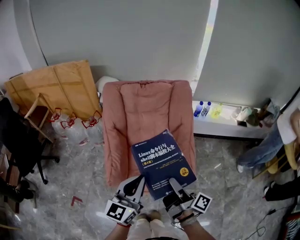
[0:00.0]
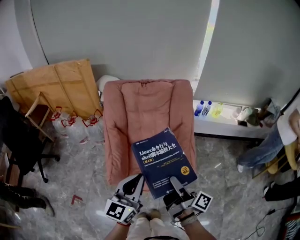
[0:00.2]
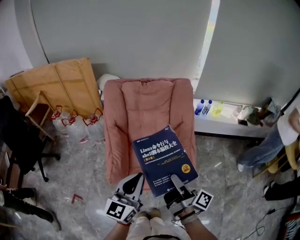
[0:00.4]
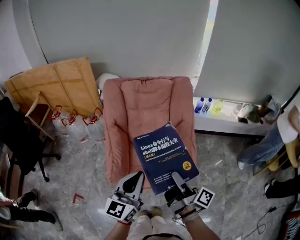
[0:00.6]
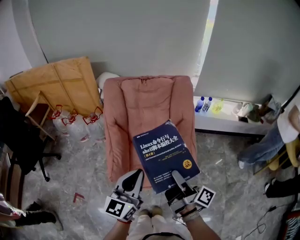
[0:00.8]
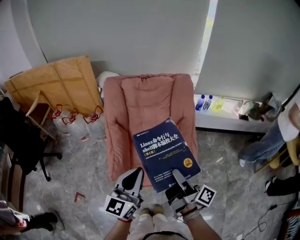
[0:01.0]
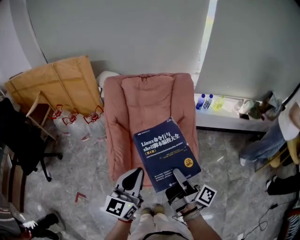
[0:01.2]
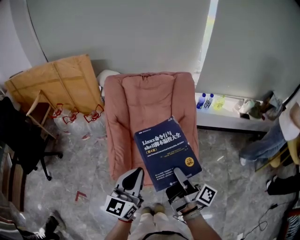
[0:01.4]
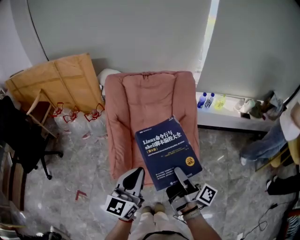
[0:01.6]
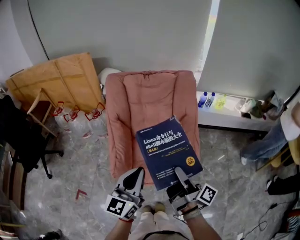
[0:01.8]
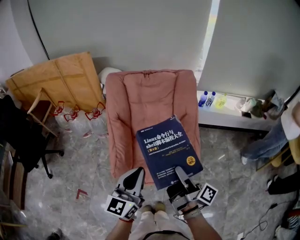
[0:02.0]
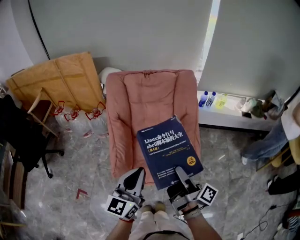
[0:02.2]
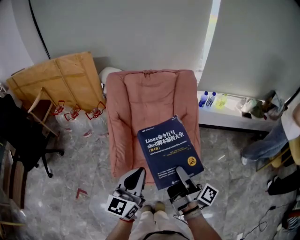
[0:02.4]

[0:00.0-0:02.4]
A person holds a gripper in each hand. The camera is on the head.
0:00.0 to 0:02.4: The grippers move only a little.

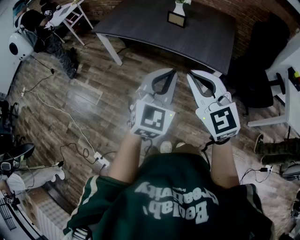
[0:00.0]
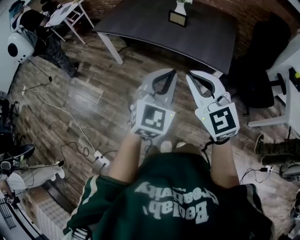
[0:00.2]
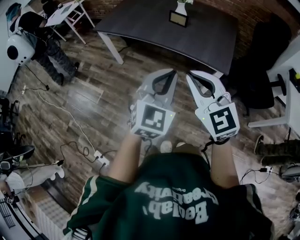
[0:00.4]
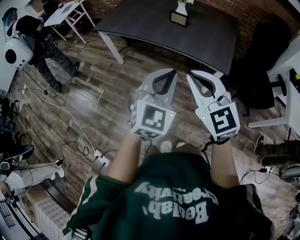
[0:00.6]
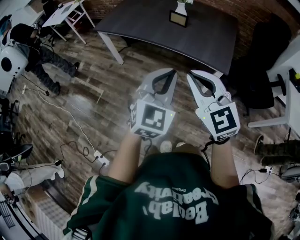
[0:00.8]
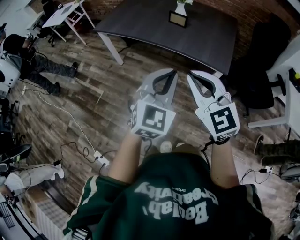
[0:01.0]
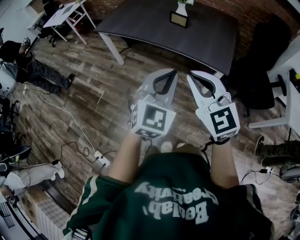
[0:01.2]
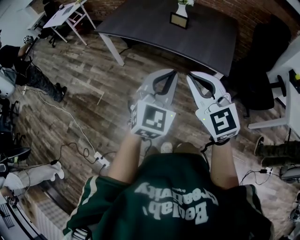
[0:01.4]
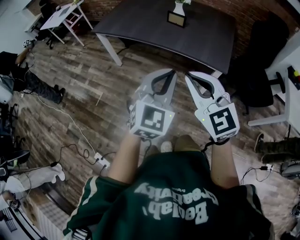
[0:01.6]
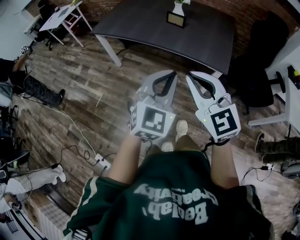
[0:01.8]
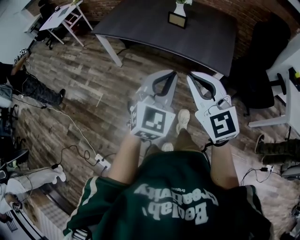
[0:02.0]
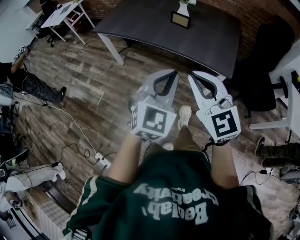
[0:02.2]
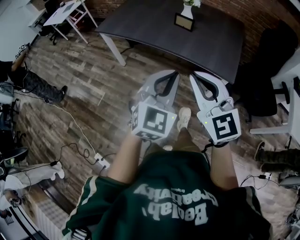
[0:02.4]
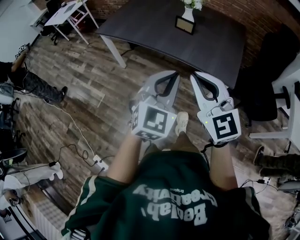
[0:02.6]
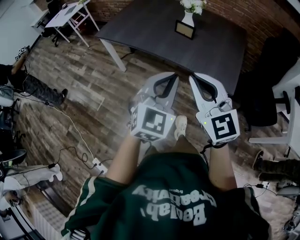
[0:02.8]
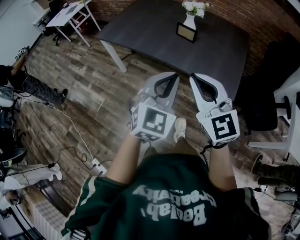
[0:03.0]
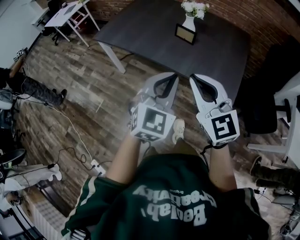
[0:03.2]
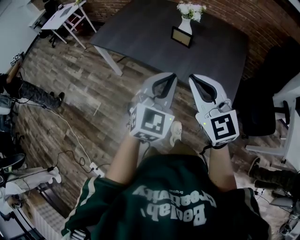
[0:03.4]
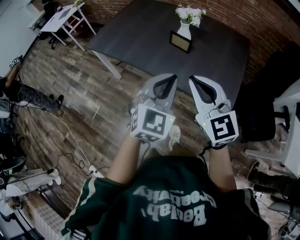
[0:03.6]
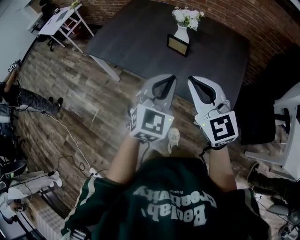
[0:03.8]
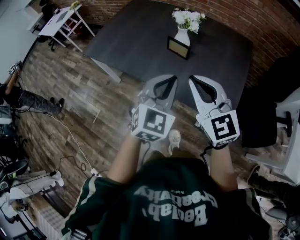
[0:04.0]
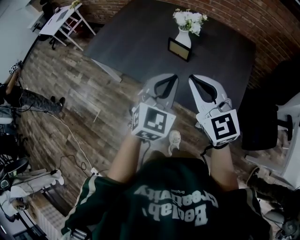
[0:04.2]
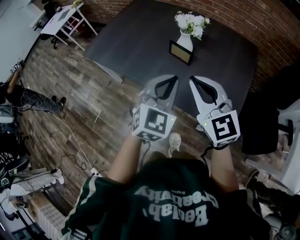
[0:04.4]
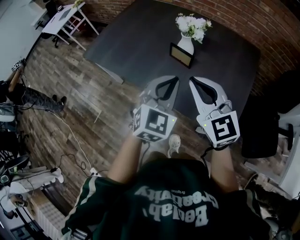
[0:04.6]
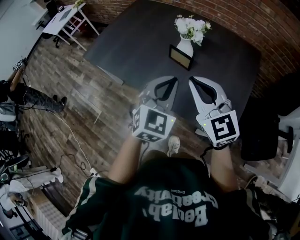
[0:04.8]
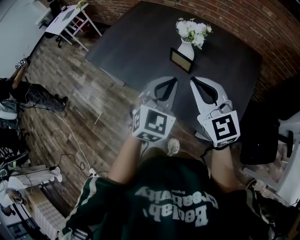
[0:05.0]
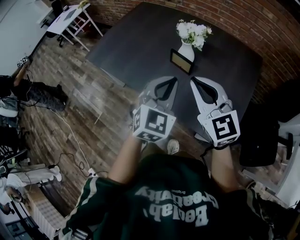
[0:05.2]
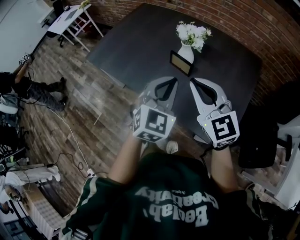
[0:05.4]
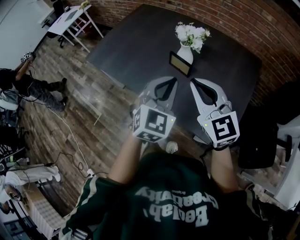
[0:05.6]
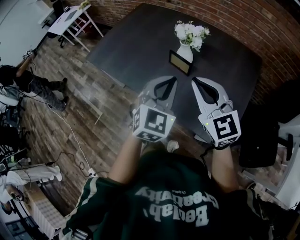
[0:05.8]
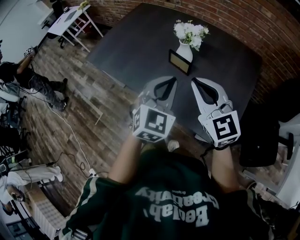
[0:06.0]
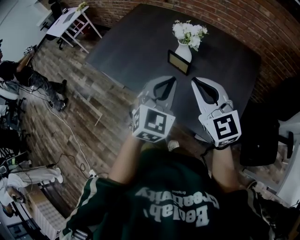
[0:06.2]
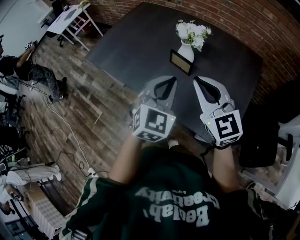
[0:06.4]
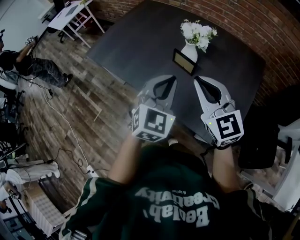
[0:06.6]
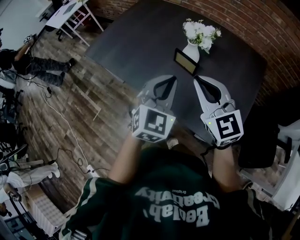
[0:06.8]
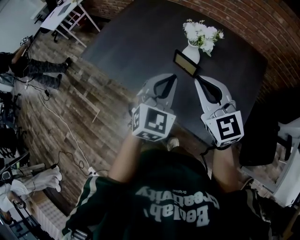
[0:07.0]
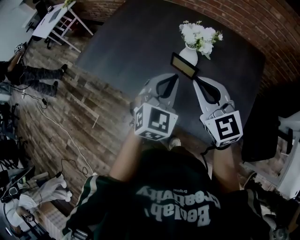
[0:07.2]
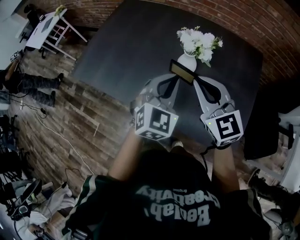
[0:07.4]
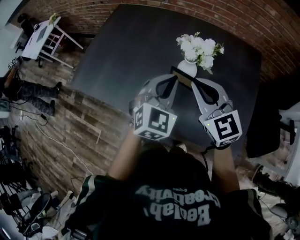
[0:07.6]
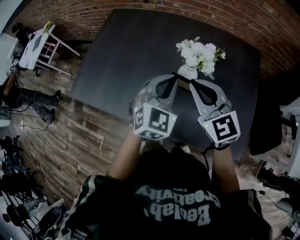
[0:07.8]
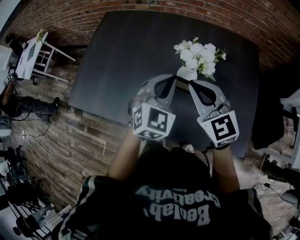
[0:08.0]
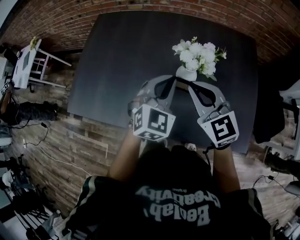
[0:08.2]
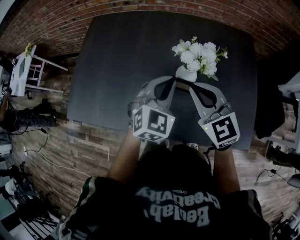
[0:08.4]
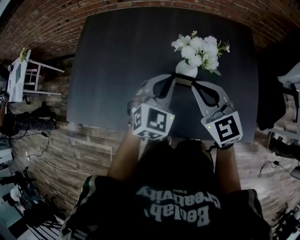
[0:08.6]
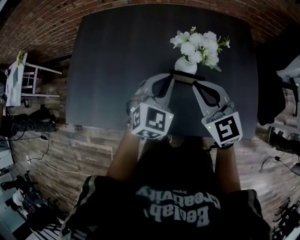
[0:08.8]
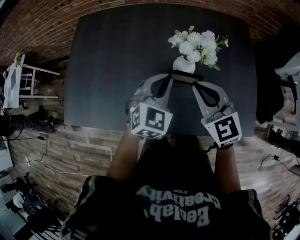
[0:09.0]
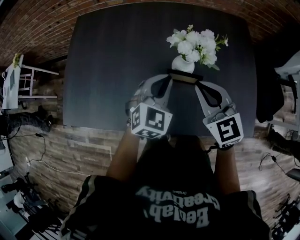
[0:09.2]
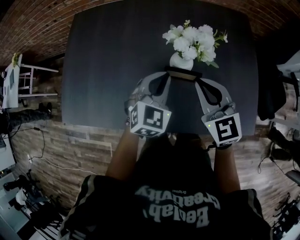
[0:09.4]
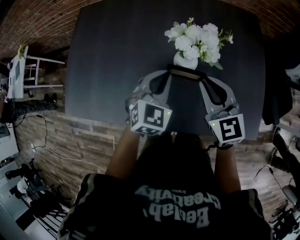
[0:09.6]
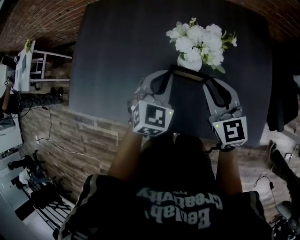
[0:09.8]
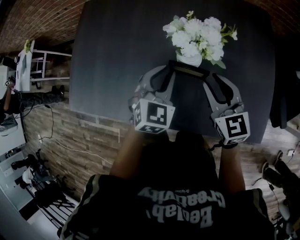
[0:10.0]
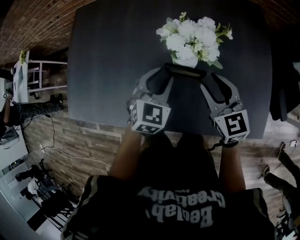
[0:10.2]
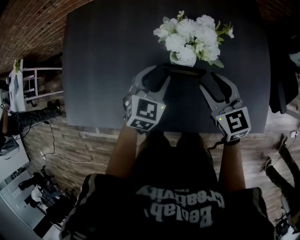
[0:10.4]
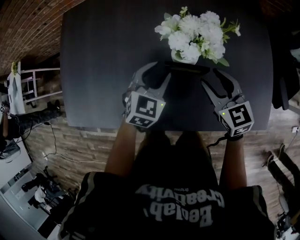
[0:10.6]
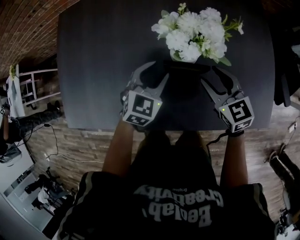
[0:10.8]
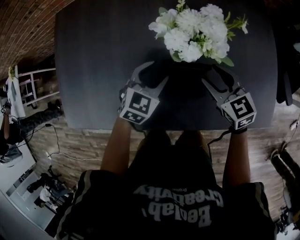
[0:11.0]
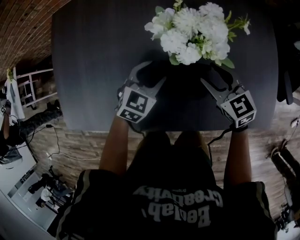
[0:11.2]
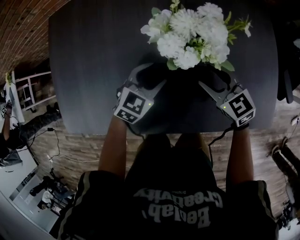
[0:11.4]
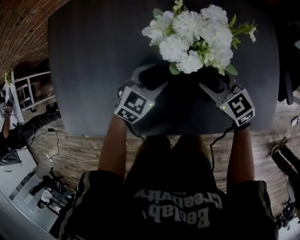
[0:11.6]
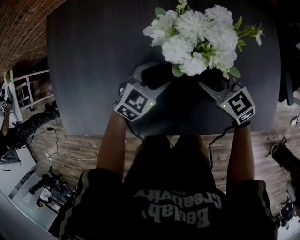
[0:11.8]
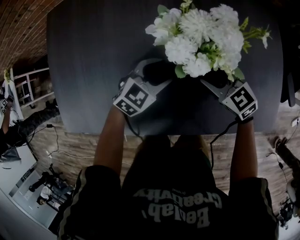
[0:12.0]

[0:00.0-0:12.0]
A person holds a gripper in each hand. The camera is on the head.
0:00.0 to 0:01.6: The grippers stay close to where they were, moving slightly.
0:01.6 to 0:03.0: Both grippers travel together forward, some 15 cm.
0:03.0 to 0:04.4: The two grippers go some 25 cm forward.
0:04.4 to 0:06.0: The left gripper moves some 5 cm. Meanwhile the right gripper moves approximately 5 cm.
0:06.0 to 0:07.6: The two grippers go some 20 cm forward.
0:07.6 to 0:09.0: The left gripper travels forward and downward by about 10 cm. The right gripper heads downward, covering some 5 cm.
0:09.0 to 0:10.4: The right gripper goes some 15 cm downward and to the right, and opens. Meanwhile the left gripper moves downward, about 10 cm, and opens its fingers.
0:10.4 to 0:12.0: The two grippers go approximately 10 cm downward. The left gripper changes its angle by some 30 degrees. Meanwhile the right gripper turns by about 20 degrees.

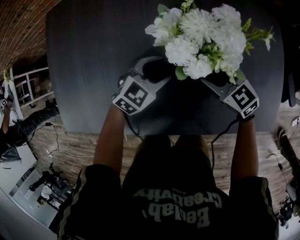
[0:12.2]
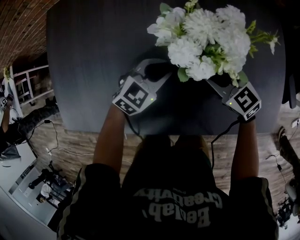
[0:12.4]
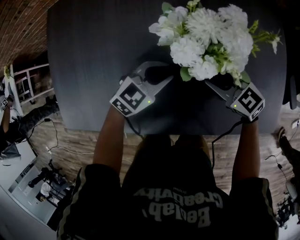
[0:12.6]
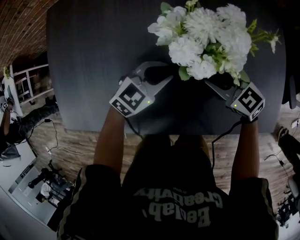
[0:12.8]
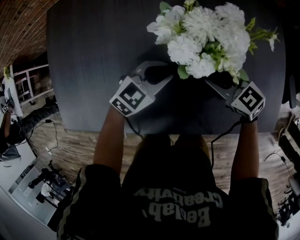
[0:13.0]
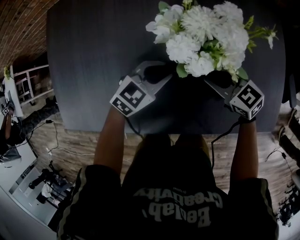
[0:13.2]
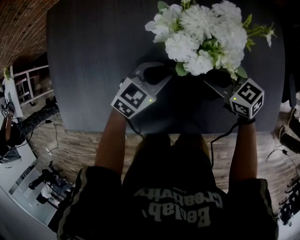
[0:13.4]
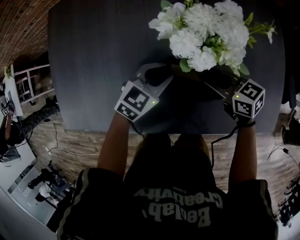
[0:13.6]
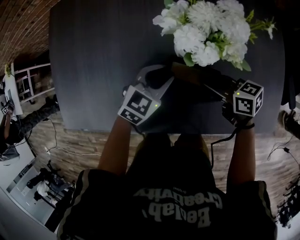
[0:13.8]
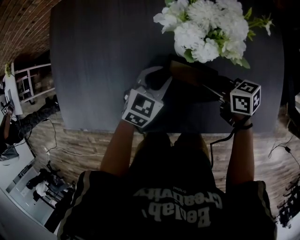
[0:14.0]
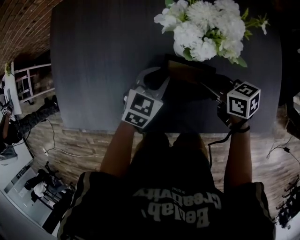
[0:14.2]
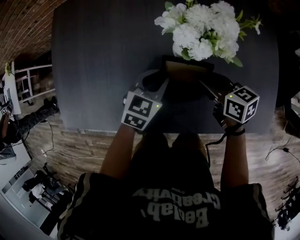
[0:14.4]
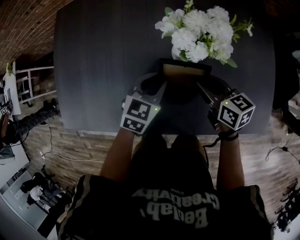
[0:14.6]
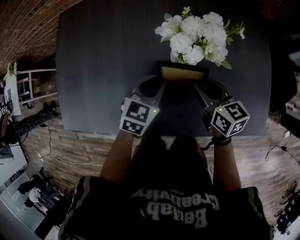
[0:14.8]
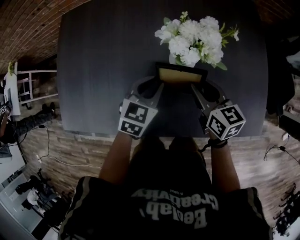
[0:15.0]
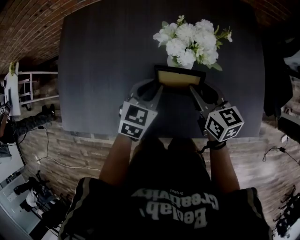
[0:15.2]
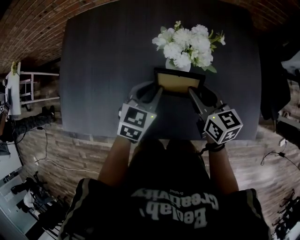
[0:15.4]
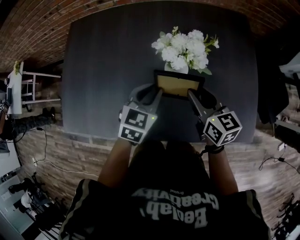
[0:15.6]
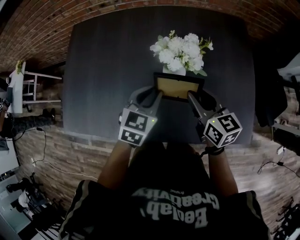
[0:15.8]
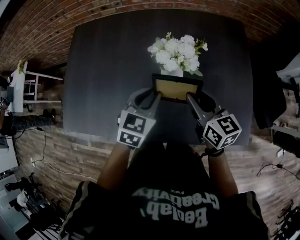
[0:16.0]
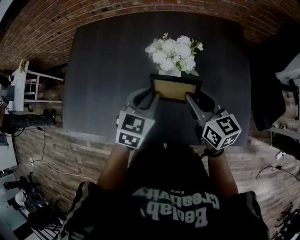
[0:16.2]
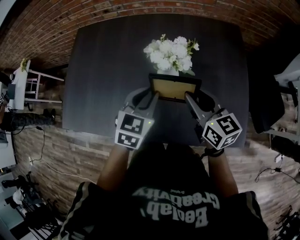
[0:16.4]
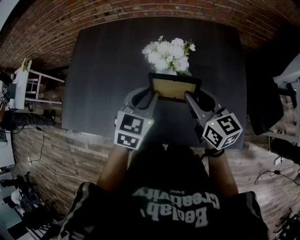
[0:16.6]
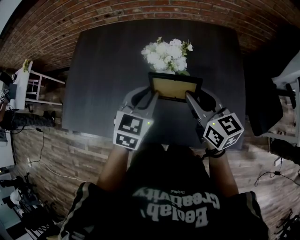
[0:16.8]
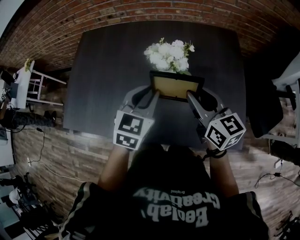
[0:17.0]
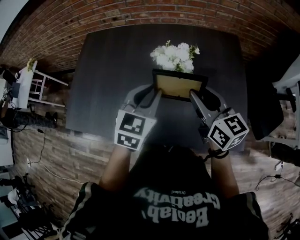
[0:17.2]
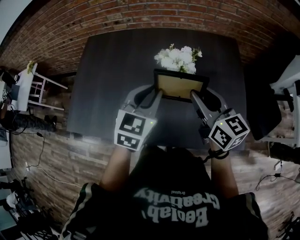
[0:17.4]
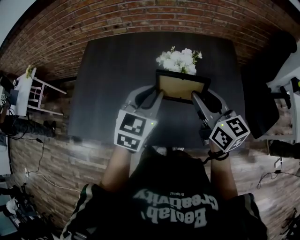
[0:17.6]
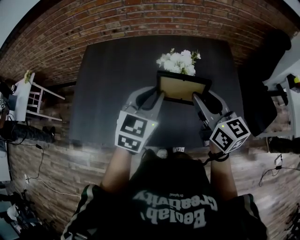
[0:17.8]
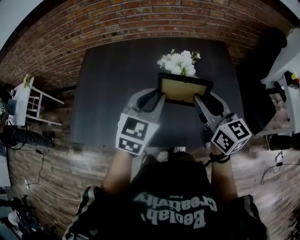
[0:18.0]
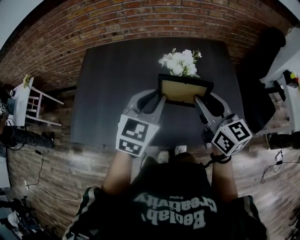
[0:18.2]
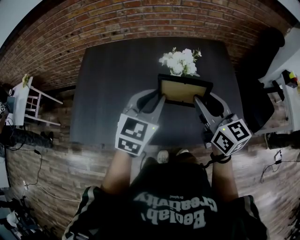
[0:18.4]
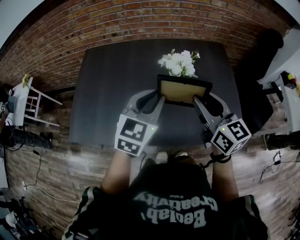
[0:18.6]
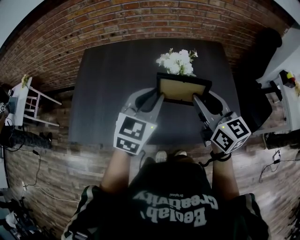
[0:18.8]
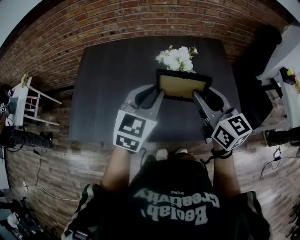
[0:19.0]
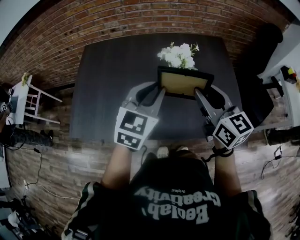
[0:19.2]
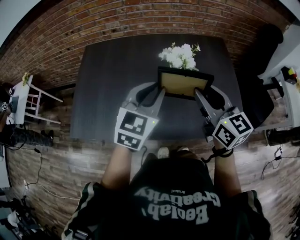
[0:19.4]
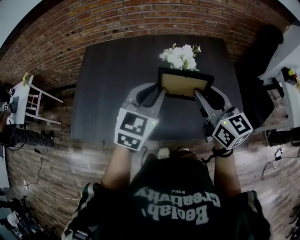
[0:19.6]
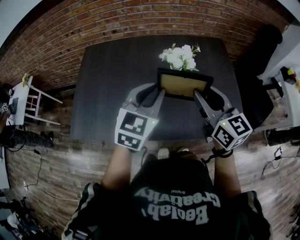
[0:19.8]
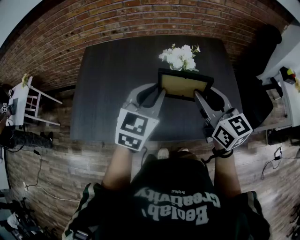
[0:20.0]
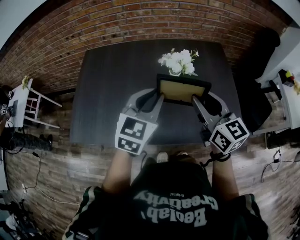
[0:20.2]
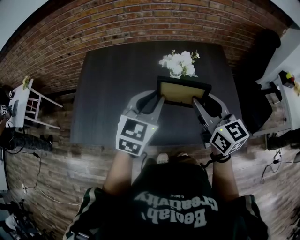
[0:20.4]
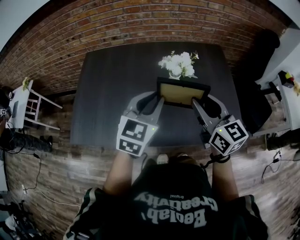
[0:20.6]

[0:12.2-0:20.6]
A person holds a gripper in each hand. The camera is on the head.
0:12.2 to 0:13.6: The left gripper closes. Meanwhile the right gripper changes its angle by roughly 30 degrees, and closes.
0:13.6 to 0:15.0: Both grippers travel together upward, some 10 cm. The left gripper changes its angle by about 20 degrees. Meanwhile the right gripper changes its angle by approximately 30 degrees.
0:15.0 to 0:16.4: The grippers both shift upward by roughly 10 cm.
0:16.4 to 0:17.8: The right gripper travels upward and backward by roughly 15 cm; the left gripper travels upward by some 10 cm.
0:17.8 to 0:19.2: The right gripper changes place by approximately 5 cm.
0:19.2 to 0:20.6: The grippers make only small movements.

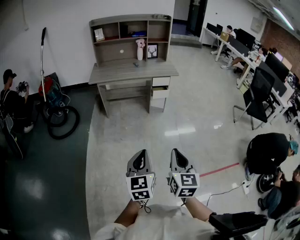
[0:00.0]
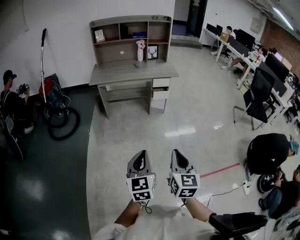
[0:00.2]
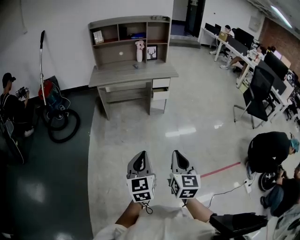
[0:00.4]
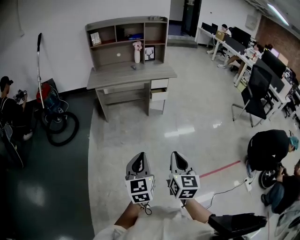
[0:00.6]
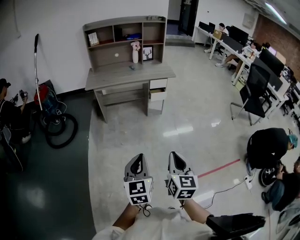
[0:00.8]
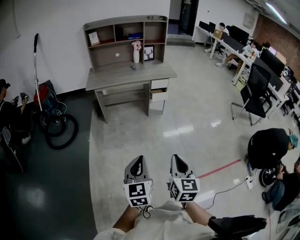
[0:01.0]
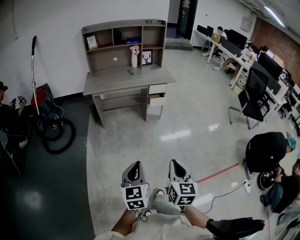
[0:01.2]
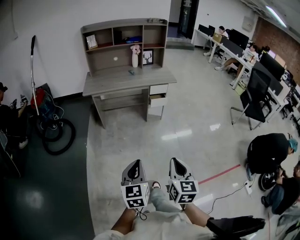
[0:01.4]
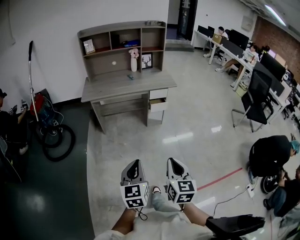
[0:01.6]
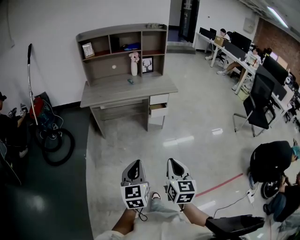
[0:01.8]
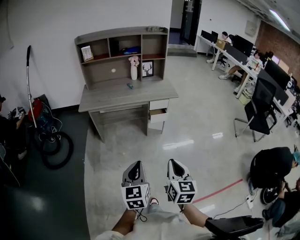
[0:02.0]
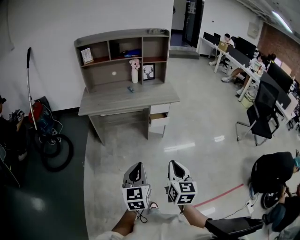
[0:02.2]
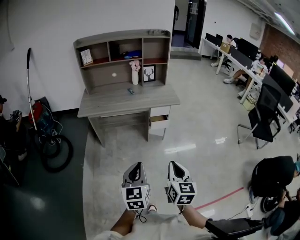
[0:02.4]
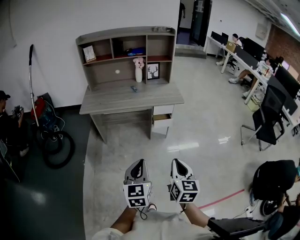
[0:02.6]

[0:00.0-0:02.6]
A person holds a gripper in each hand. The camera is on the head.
0:00.0 to 0:01.2: The right gripper shifts by approximately 5 cm; the left gripper moves to the left, about 5 cm.
0:01.2 to 0:02.6: The two grippers go approximately 30 cm forward.
